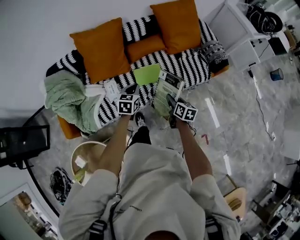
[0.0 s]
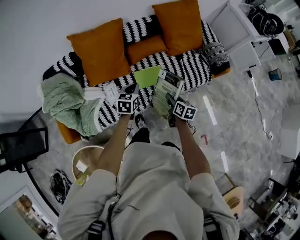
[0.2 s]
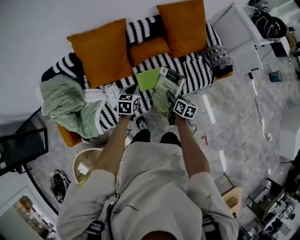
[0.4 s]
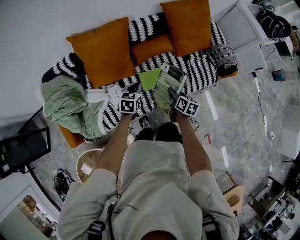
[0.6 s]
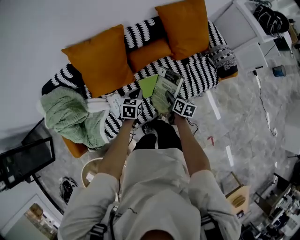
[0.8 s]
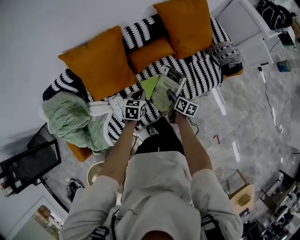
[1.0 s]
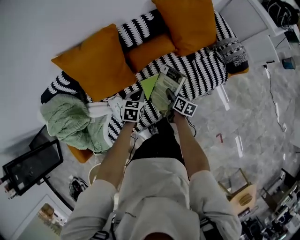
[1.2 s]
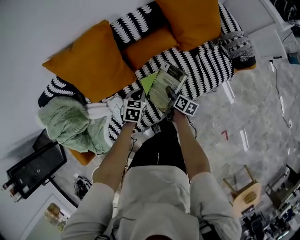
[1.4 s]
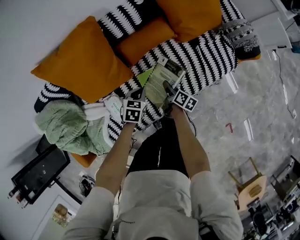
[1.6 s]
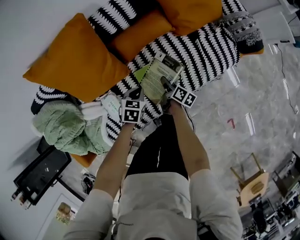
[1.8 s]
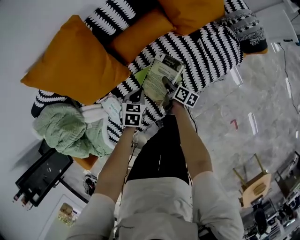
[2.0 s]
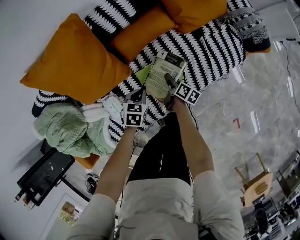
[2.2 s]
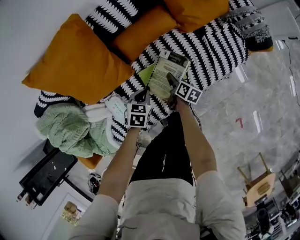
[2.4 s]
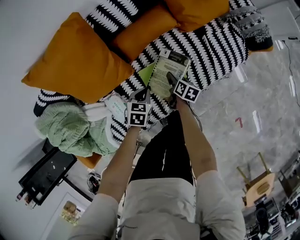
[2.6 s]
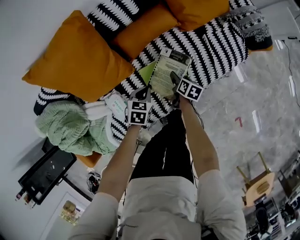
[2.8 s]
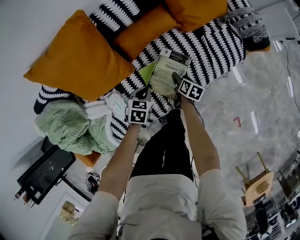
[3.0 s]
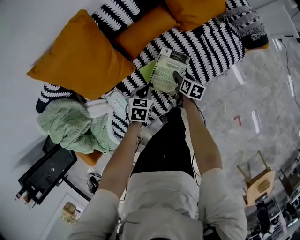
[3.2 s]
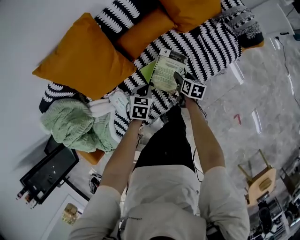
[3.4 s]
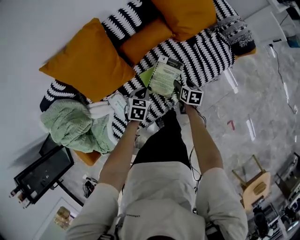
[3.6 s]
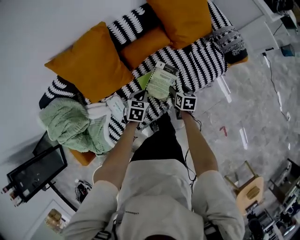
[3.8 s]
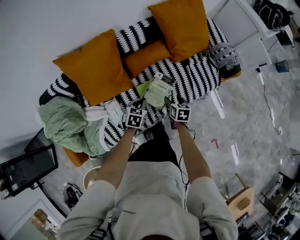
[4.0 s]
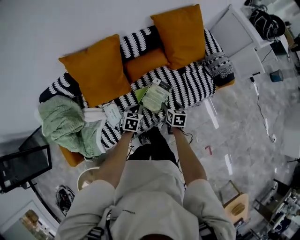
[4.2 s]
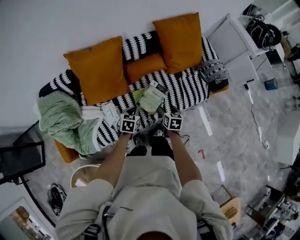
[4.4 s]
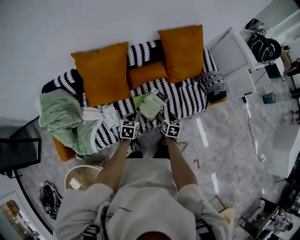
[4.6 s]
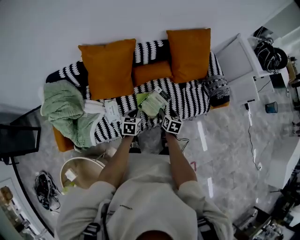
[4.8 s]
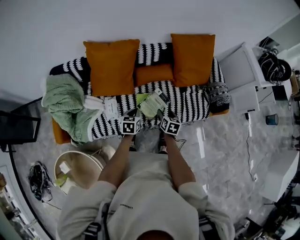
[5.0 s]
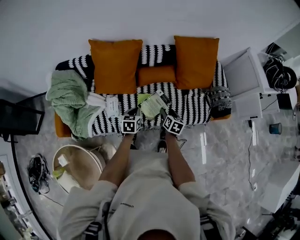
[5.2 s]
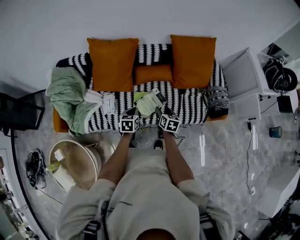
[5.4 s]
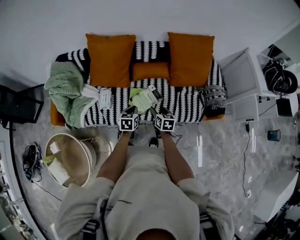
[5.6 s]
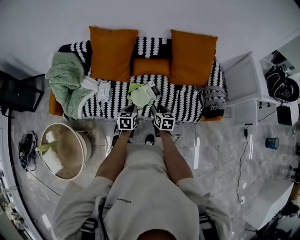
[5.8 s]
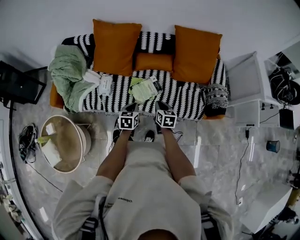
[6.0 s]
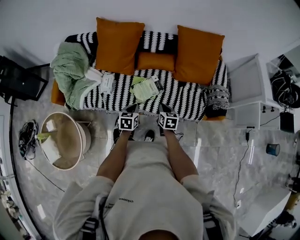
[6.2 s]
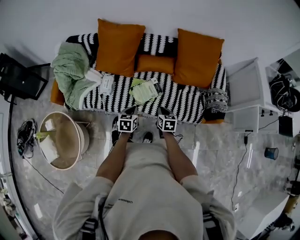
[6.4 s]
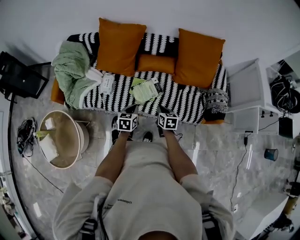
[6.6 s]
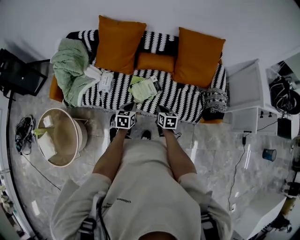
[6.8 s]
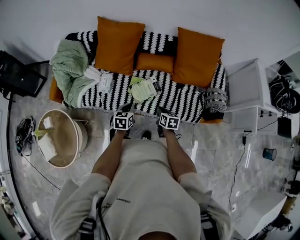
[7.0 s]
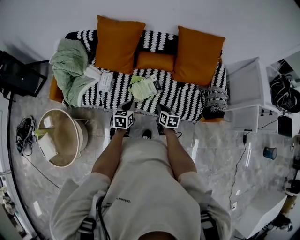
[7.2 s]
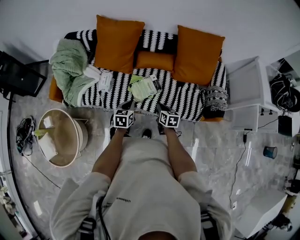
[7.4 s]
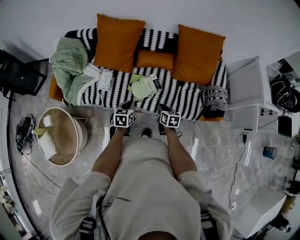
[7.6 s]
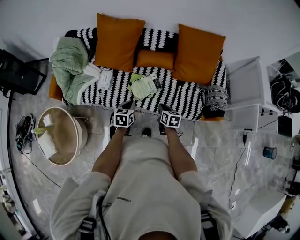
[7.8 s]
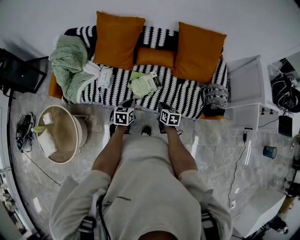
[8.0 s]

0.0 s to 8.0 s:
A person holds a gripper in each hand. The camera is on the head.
0.0 to 1.6 s: The two grippers go some 30 cm downward and forward. The left gripper swivels roughly 20 degrees. The right gripper swivels approximately 30 degrees.
1.6 to 3.2 s: The right gripper shifts by approximately 5 cm, swivels approximately 20 degrees, and opens.
3.2 to 4.8 s: The left gripper travels upward and backward by approximately 20 cm, and rotates roughly 30 degrees. Meanwhile the right gripper moves upward, about 25 cm, and changes its angle by some 30 degrees.
4.8 to 6.4 s: The right gripper shifts by about 15 cm, rotates roughly 30 degrees, and closes up. Meanwhile the left gripper changes place by approximately 20 cm, and swivels some 20 degrees.
6.4 to 8.0 s: The grippers make only small movements.

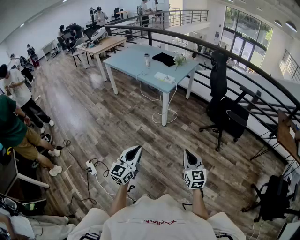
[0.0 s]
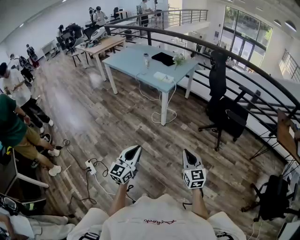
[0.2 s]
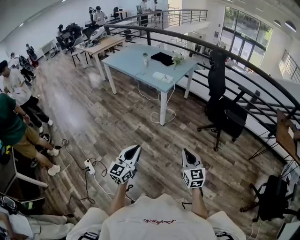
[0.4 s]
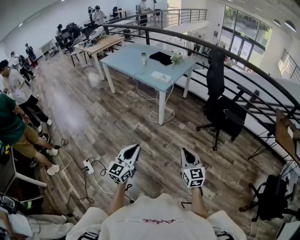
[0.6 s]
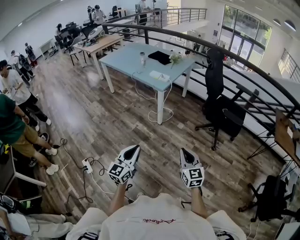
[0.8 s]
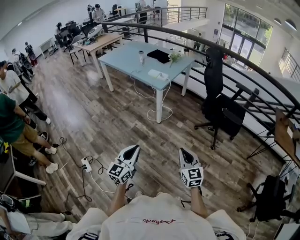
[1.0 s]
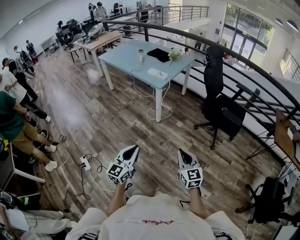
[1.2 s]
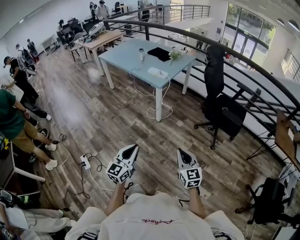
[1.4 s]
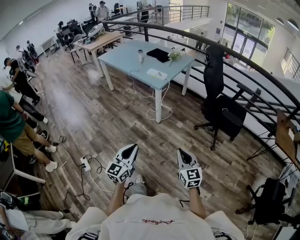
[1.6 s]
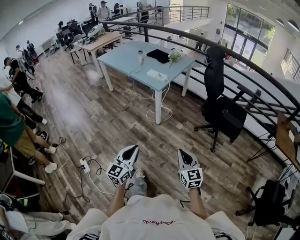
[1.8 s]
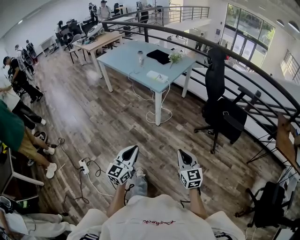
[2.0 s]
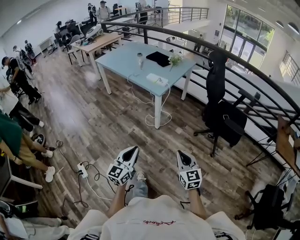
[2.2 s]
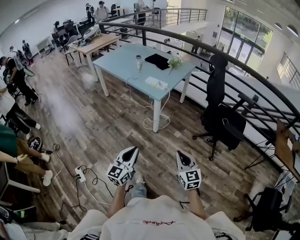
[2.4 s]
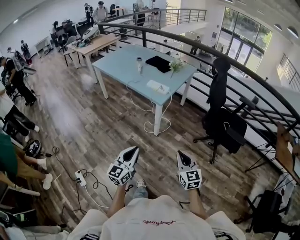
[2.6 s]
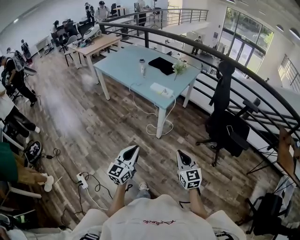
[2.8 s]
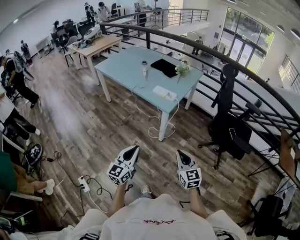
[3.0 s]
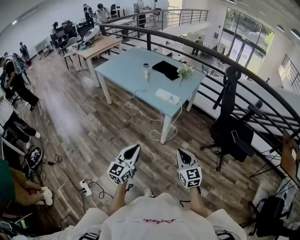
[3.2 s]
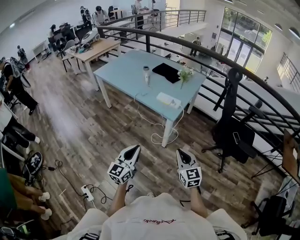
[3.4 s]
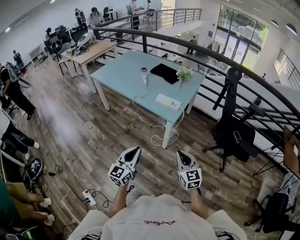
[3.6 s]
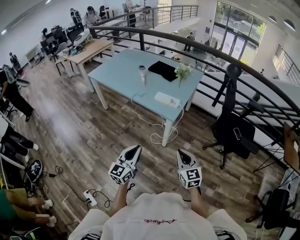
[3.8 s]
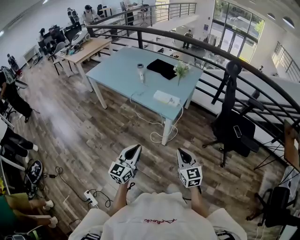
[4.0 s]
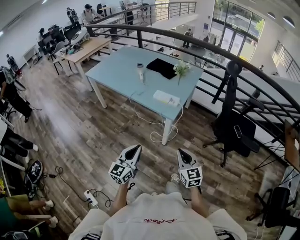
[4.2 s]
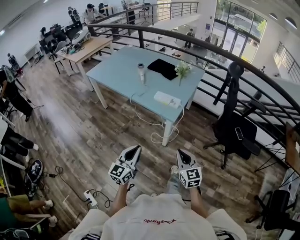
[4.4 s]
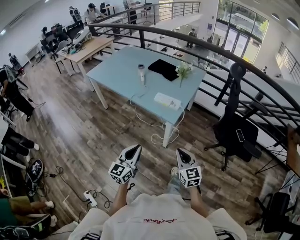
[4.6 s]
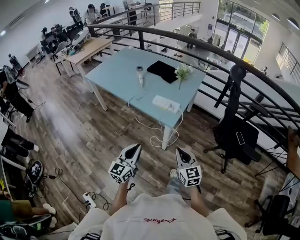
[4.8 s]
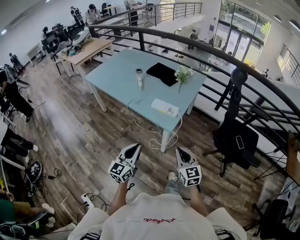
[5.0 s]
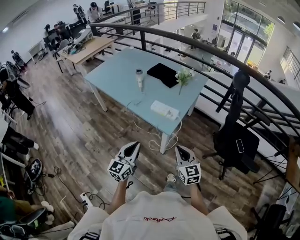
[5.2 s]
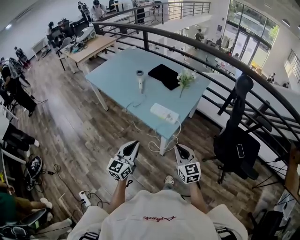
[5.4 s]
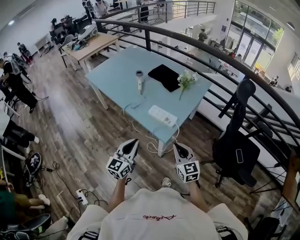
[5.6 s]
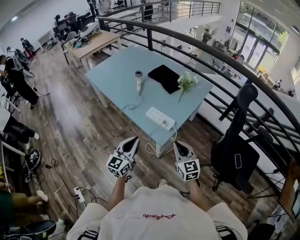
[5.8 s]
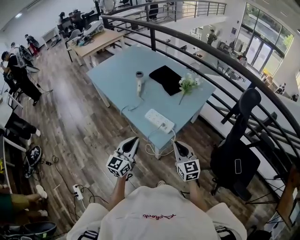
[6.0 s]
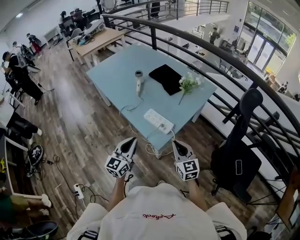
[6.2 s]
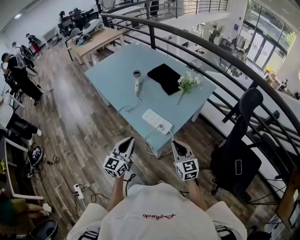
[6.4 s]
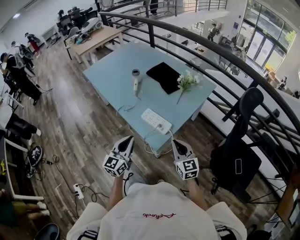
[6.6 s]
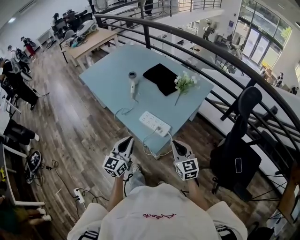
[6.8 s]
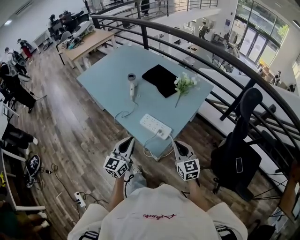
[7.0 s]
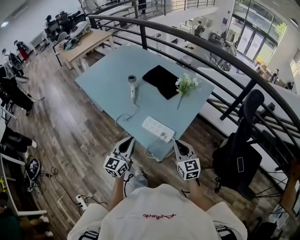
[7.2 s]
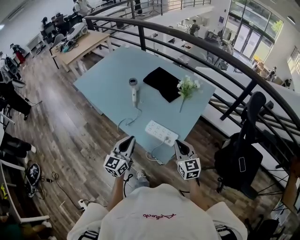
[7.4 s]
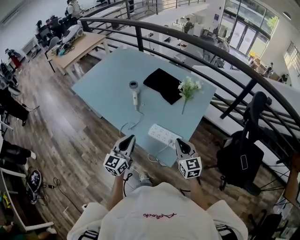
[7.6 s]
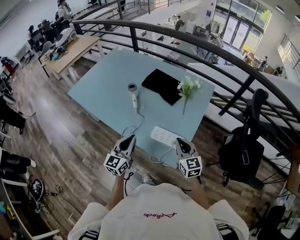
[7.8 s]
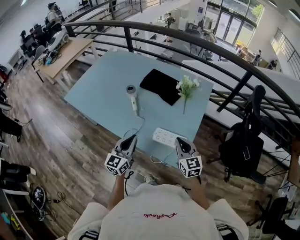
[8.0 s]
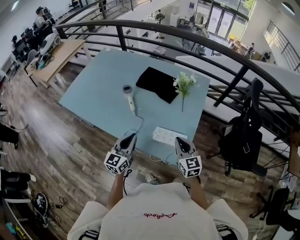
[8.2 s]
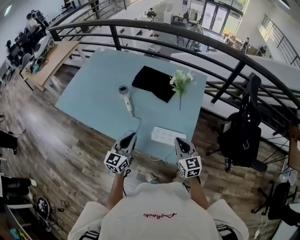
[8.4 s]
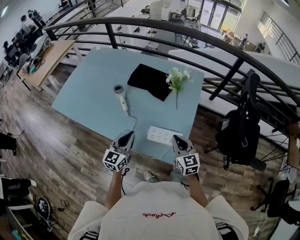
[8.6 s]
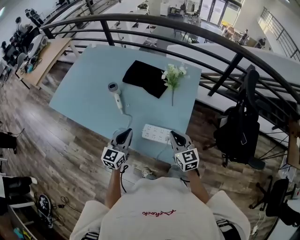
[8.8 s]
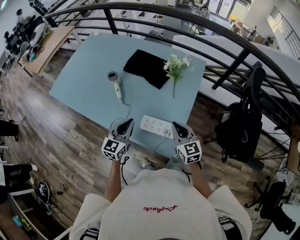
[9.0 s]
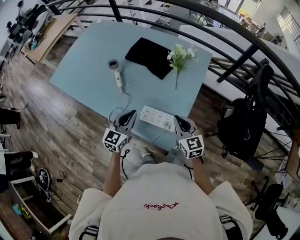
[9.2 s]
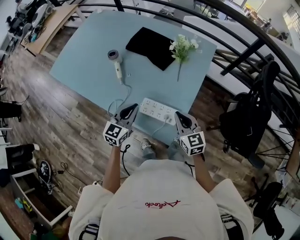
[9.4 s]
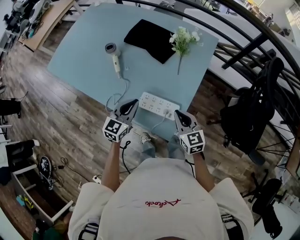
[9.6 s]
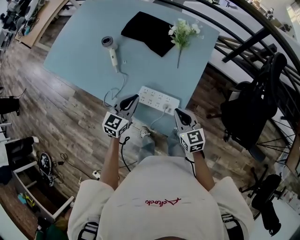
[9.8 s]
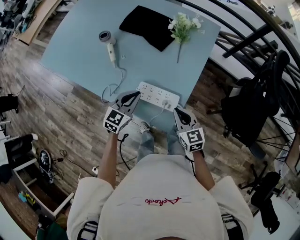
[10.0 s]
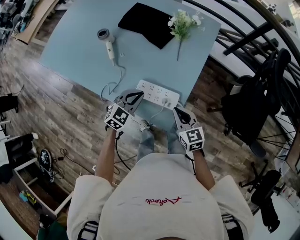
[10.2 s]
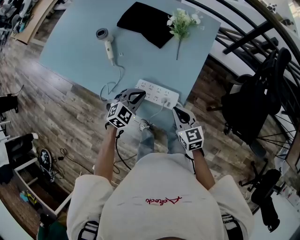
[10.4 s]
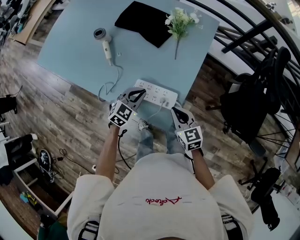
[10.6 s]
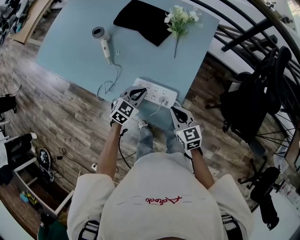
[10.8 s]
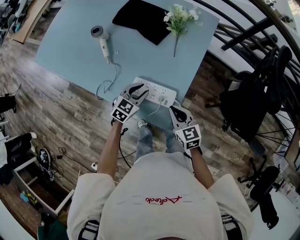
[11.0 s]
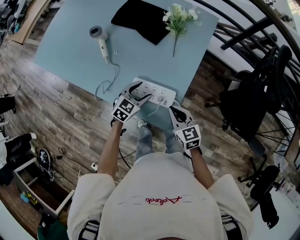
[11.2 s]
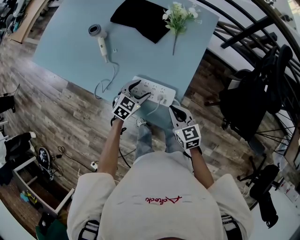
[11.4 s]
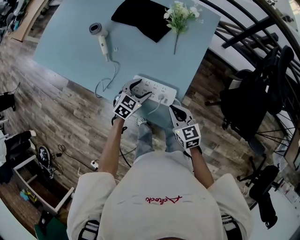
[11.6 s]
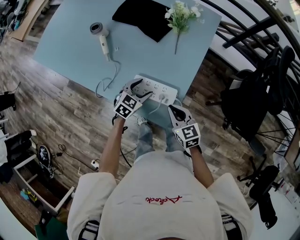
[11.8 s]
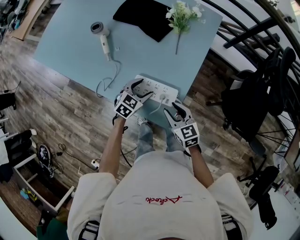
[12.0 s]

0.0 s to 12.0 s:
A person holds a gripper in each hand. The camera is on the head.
0.0 to 1.6 s: Both grippers move to the right, about 5 cm.
1.6 to 3.0 s: Both grippers travel together forward and to the left, approximately 30 cm.
3.0 to 4.4 s: Both grippers travel together forward and to the left, about 15 cm.
4.4 to 6.0 s: The right gripper is displaced forward by some 30 cm. The left gripper is displaced forward and to the right by some 30 cm.
6.0 to 7.6 s: The right gripper moves forward, about 15 cm, while the left gripper shifts approximately 20 cm forward and to the left.
7.6 to 9.0 s: The left gripper shifts approximately 15 cm forward and downward; the right gripper goes some 5 cm forward.
9.0 to 10.4 s: The right gripper heads downward, covering some 10 cm. Meanwhile the left gripper is displaced downward and to the right by approximately 15 cm, and changes its angle by approximately 40 degrees.
10.4 to 12.0 s: The right gripper opens up. The left gripper goes approximately 5 cm downward, turns by approximately 20 degrees, and opens its fingers.

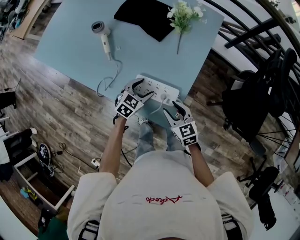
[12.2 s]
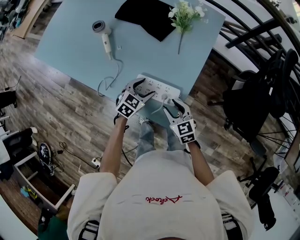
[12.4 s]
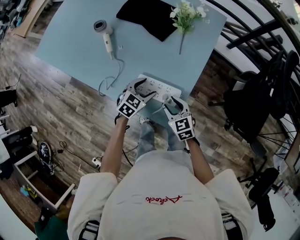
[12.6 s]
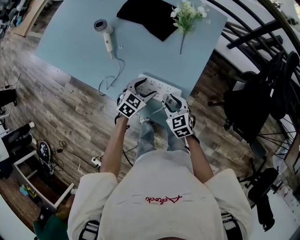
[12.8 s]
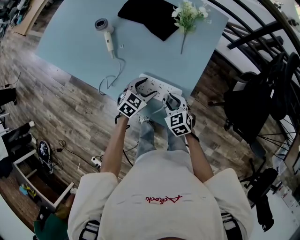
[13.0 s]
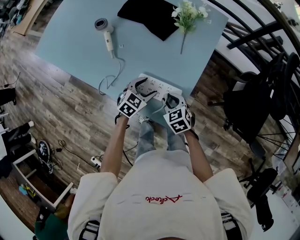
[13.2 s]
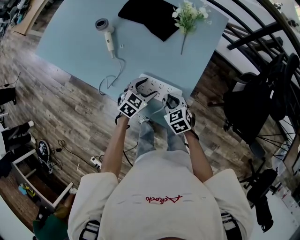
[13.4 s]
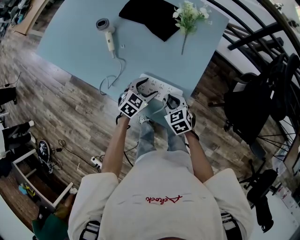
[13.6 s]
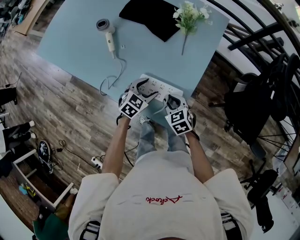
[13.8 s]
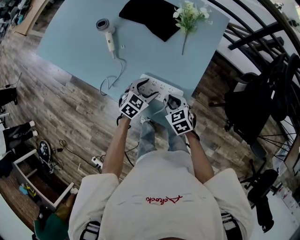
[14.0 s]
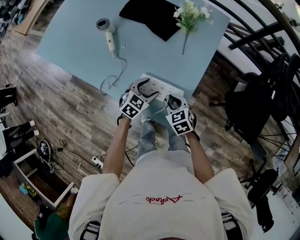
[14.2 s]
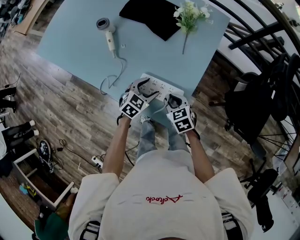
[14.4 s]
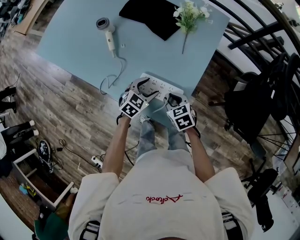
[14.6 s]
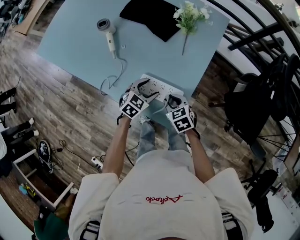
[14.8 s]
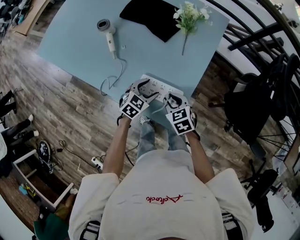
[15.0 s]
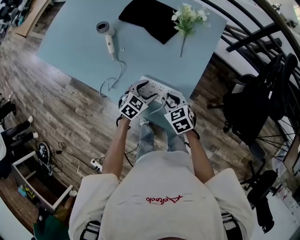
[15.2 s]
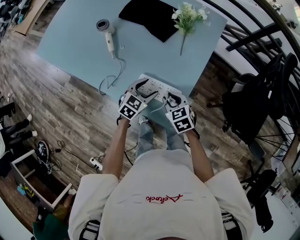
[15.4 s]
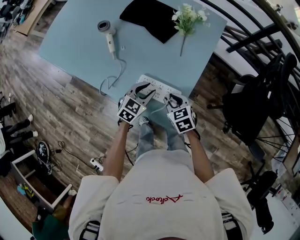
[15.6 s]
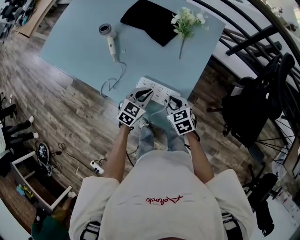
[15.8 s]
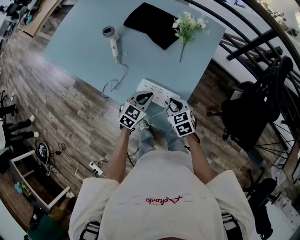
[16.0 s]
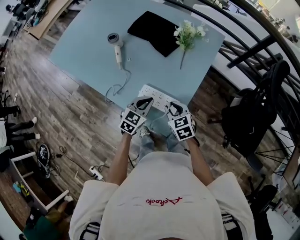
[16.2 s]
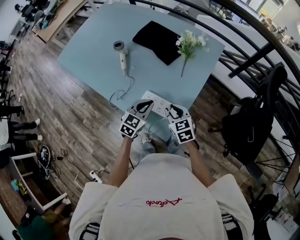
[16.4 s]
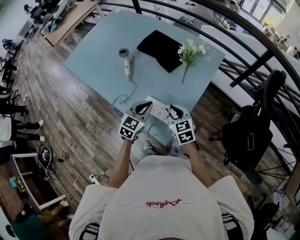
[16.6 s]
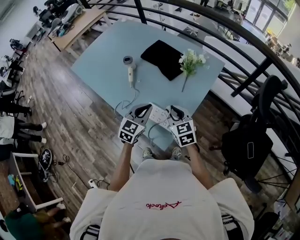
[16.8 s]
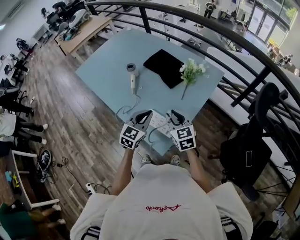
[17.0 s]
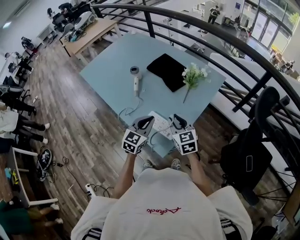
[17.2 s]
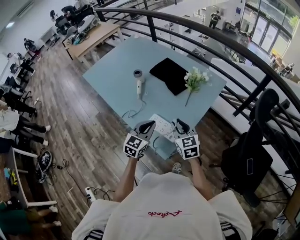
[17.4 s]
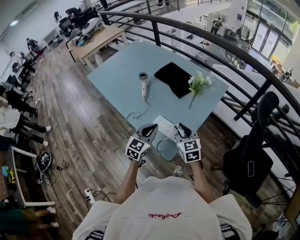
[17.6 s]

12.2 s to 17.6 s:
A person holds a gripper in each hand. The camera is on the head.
12.2 to 13.6 s: The right gripper shifts by about 5 cm.
13.6 to 15.0 s: The grippers stay close to where they were, moving slightly.
15.0 to 16.2 s: The left gripper goes about 5 cm upward, and closes up.
16.2 to 17.6 s: The left gripper shifts some 15 cm upward and backward, and changes its angle by some 20 degrees. Meanwhile the right gripper heads upward, covering about 15 cm, and turns by roughly 20 degrees.
